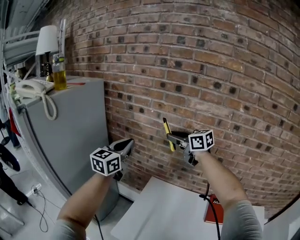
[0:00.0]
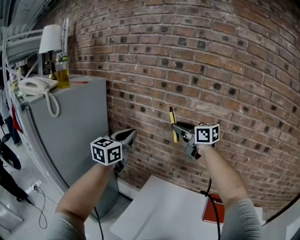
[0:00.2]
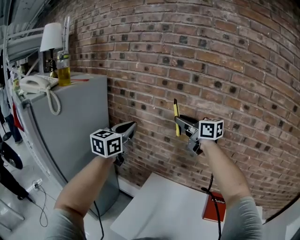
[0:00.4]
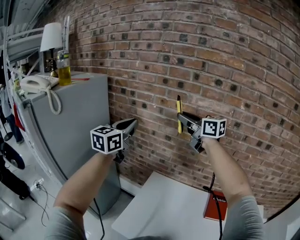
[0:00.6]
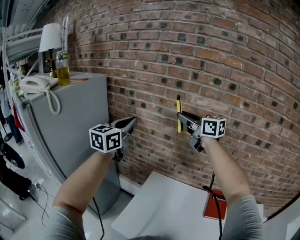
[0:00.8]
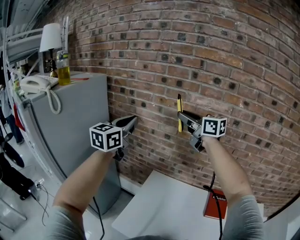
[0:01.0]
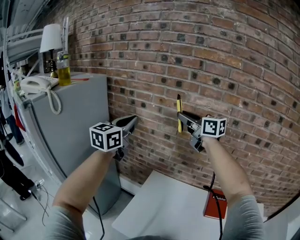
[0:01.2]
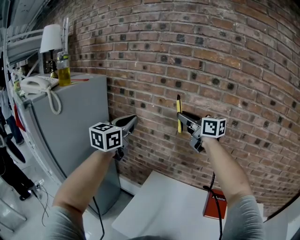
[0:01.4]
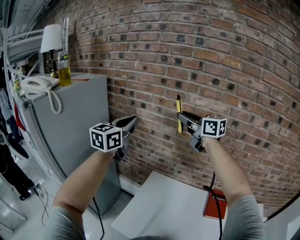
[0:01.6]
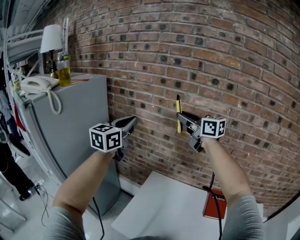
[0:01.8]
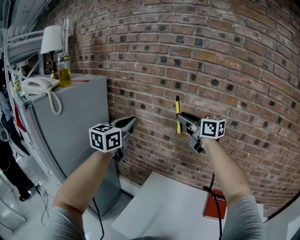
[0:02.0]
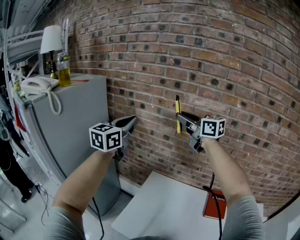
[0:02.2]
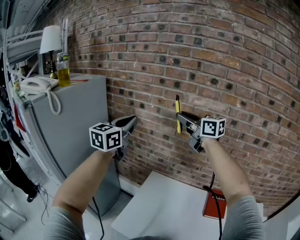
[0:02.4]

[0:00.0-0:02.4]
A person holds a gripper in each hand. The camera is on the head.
0:00.0 to 0:01.2: The grippers both shift upward by approximately 10 cm.
0:01.2 to 0:02.4: The two grippers keep their place.

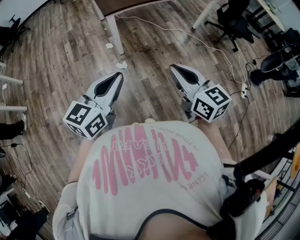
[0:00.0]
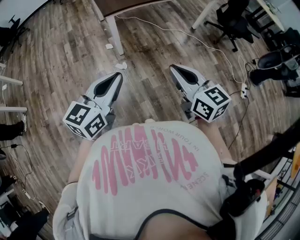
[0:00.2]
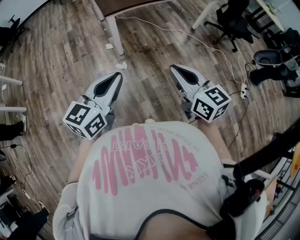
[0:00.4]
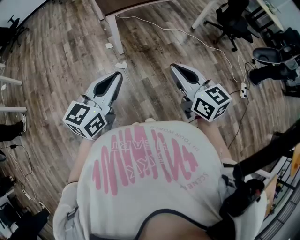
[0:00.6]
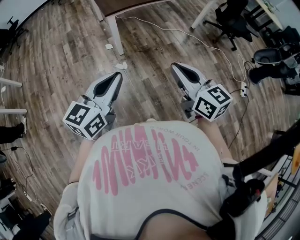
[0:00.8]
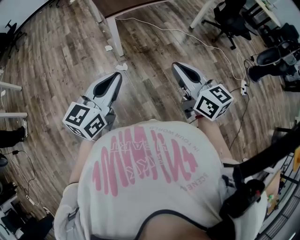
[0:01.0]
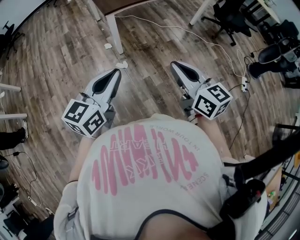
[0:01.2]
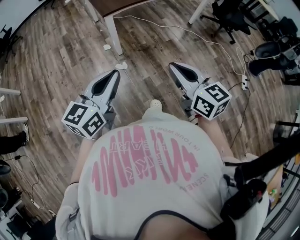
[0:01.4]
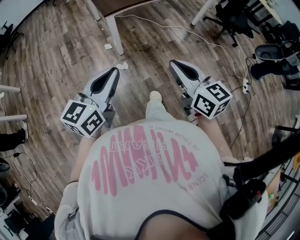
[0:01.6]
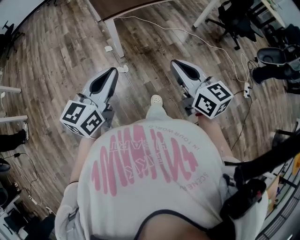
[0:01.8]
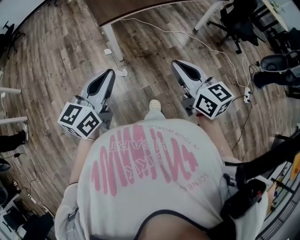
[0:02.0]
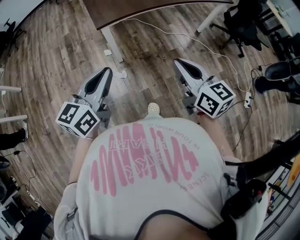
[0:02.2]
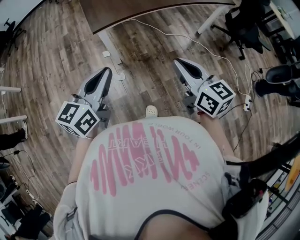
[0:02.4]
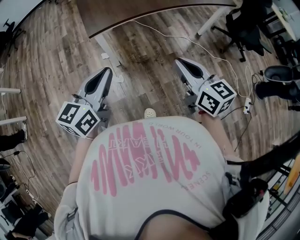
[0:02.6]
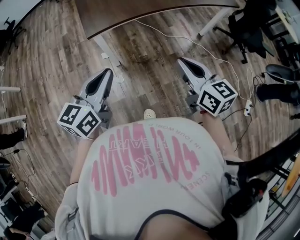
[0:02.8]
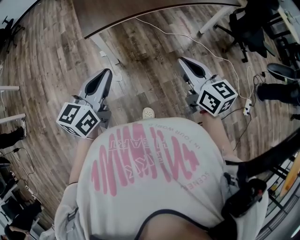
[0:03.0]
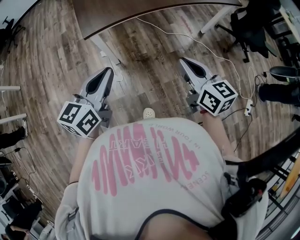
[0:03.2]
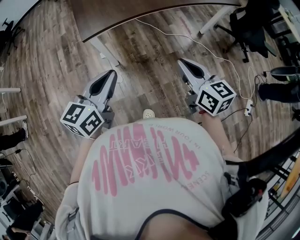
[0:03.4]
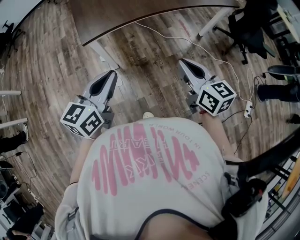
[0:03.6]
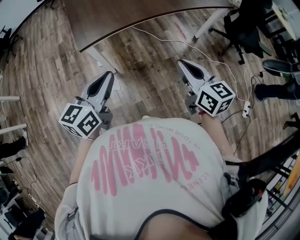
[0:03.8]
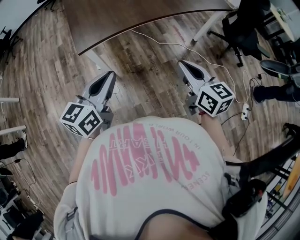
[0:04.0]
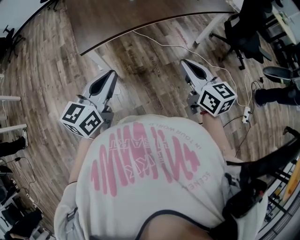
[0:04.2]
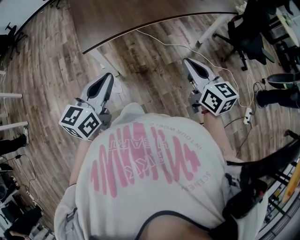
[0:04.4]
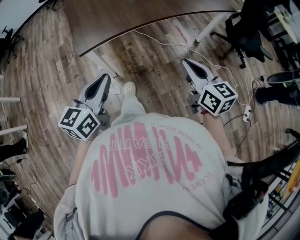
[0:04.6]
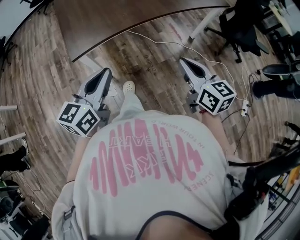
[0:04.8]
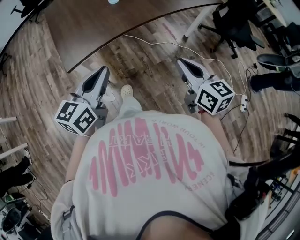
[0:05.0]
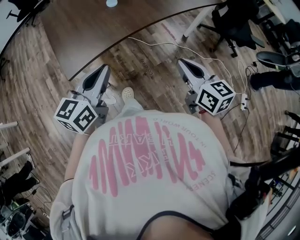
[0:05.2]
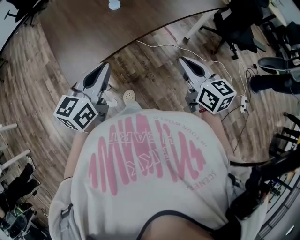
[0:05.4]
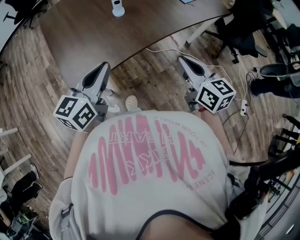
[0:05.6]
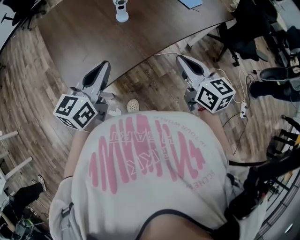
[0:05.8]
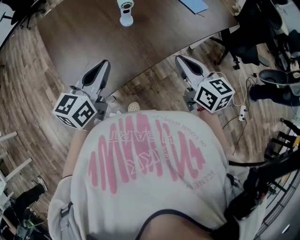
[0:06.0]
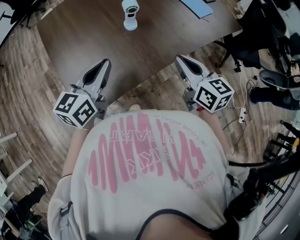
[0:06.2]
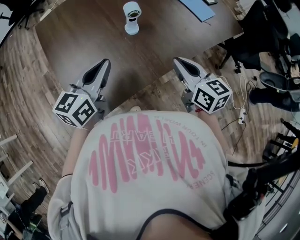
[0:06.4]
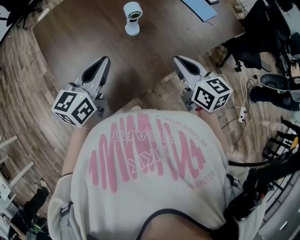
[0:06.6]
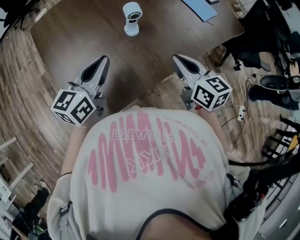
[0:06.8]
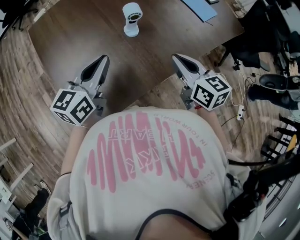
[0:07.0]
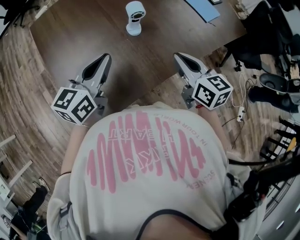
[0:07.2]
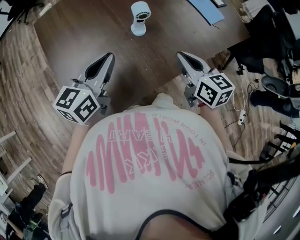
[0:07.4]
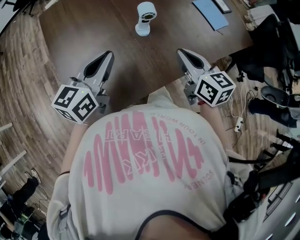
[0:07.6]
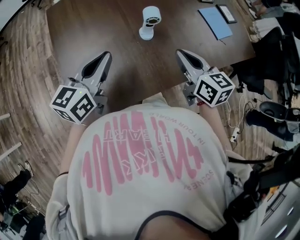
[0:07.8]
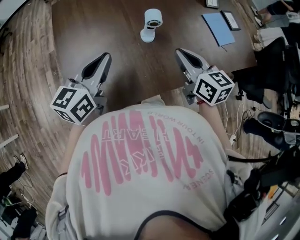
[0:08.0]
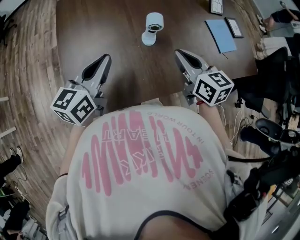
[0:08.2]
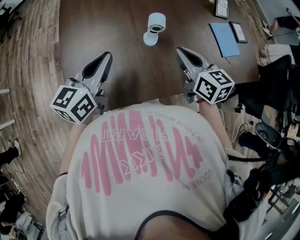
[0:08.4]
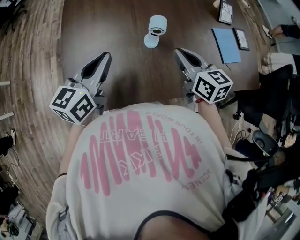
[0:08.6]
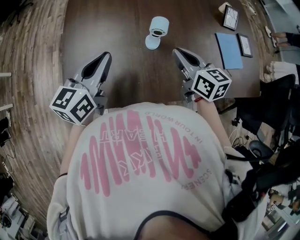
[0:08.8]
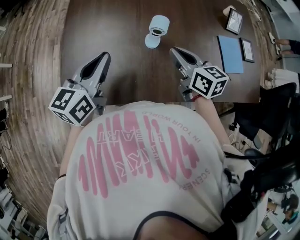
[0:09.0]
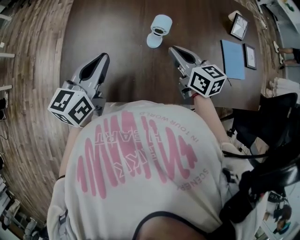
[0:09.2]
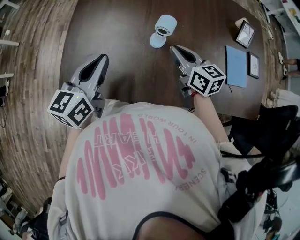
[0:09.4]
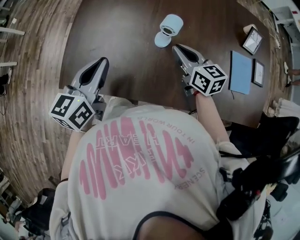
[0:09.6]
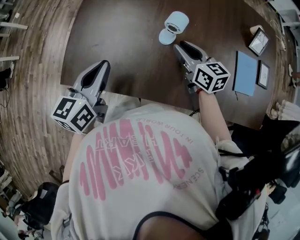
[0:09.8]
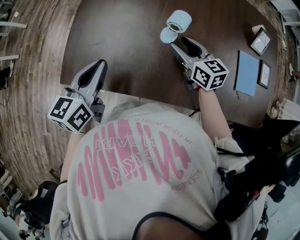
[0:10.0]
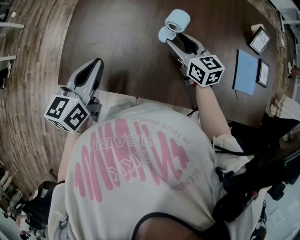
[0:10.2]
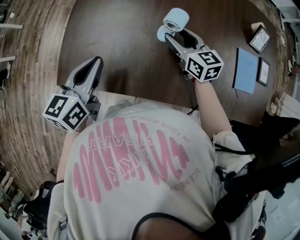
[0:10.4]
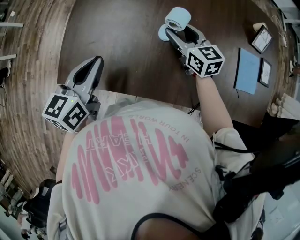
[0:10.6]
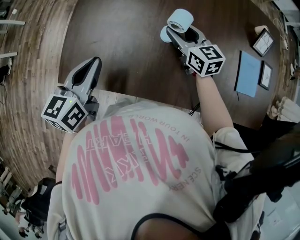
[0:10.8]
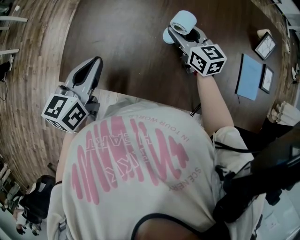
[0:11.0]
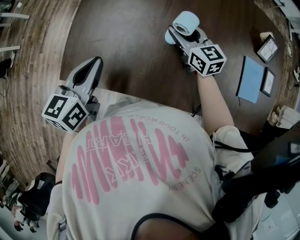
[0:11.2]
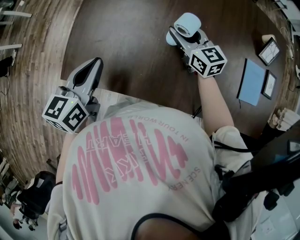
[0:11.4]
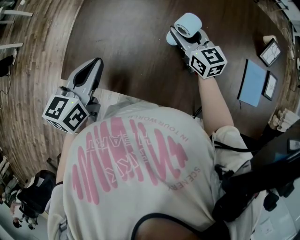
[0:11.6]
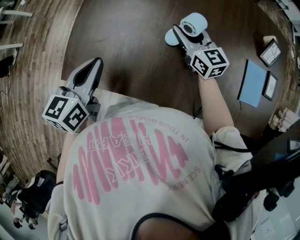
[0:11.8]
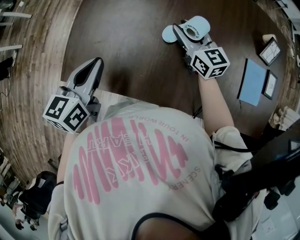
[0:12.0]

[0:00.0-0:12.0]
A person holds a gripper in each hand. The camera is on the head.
0:00.0 to 0:01.6: The right gripper goes approximately 5 cm forward, while the left gripper moves forward and to the left, some 10 cm.
0:01.6 to 0:03.0: The two grippers go some 30 cm forward and to the right.
0:03.0 to 0:04.4: The right gripper moves forward, some 5 cm, while the left gripper moves about 5 cm.
0:04.4 to 0:06.0: The grippers both shift forward by approximately 35 cm.
0:06.0 to 0:07.6: The right gripper heads forward and to the left, covering about 15 cm. Meanwhile the left gripper heads forward, covering approximately 10 cm.
0:07.6 to 0:09.0: The left gripper changes its angle by roughly 30 degrees, while the right gripper ends up some 10 cm from where it was, and turns by some 30 degrees.
0:09.0 to 0:10.4: The right gripper moves forward and downward, some 10 cm, and opens its fingers. The left gripper ends up about 5 cm from where it was.
0:10.4 to 0:12.0: The grippers move only a little.

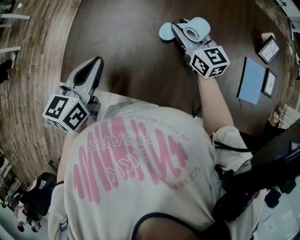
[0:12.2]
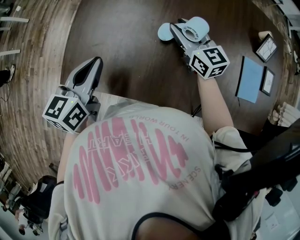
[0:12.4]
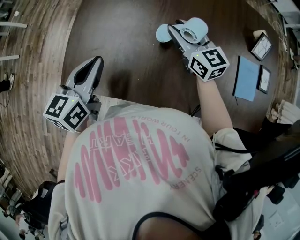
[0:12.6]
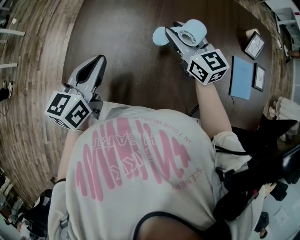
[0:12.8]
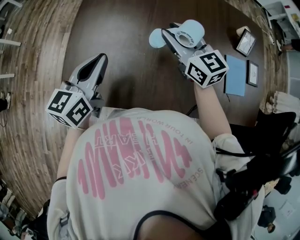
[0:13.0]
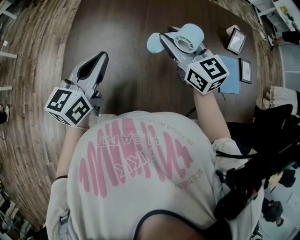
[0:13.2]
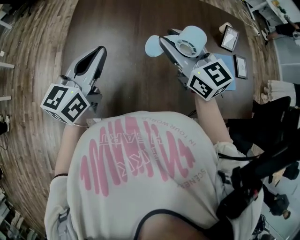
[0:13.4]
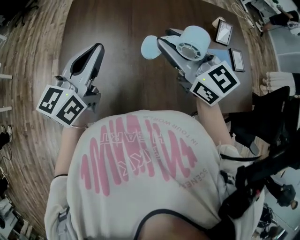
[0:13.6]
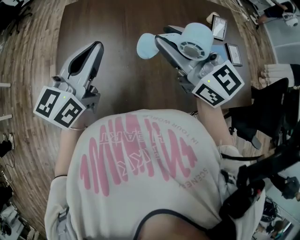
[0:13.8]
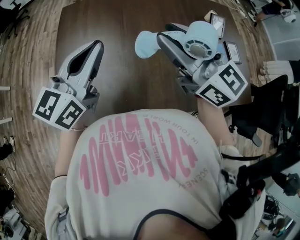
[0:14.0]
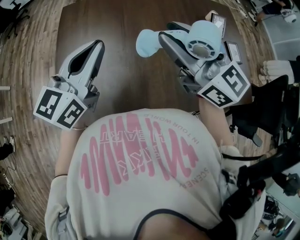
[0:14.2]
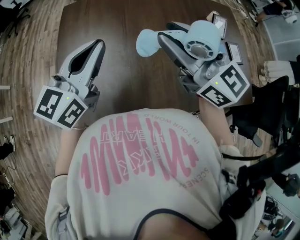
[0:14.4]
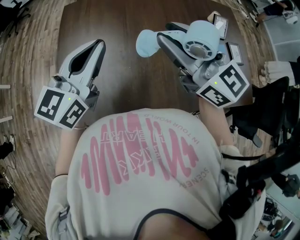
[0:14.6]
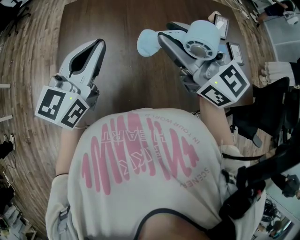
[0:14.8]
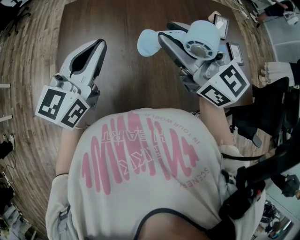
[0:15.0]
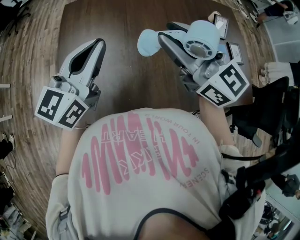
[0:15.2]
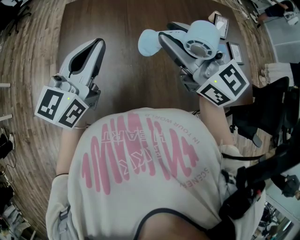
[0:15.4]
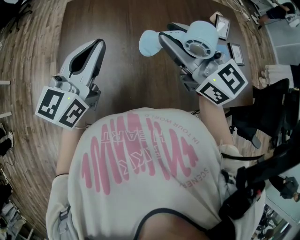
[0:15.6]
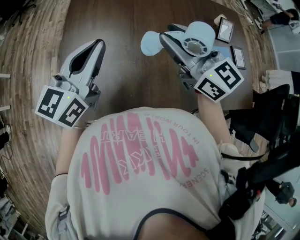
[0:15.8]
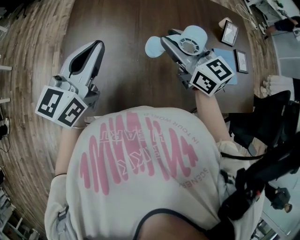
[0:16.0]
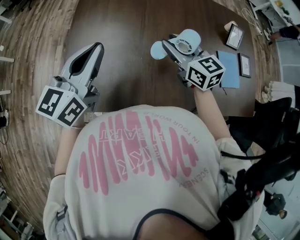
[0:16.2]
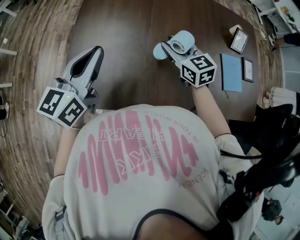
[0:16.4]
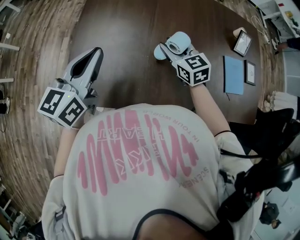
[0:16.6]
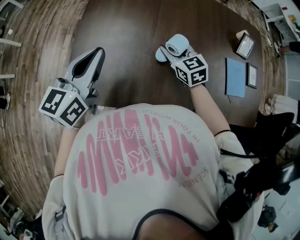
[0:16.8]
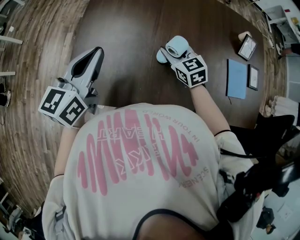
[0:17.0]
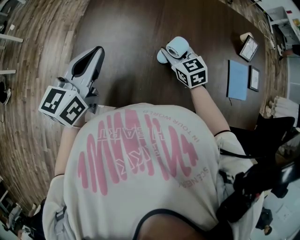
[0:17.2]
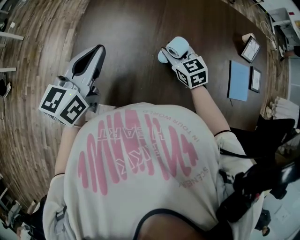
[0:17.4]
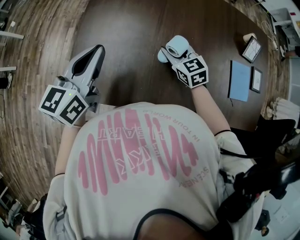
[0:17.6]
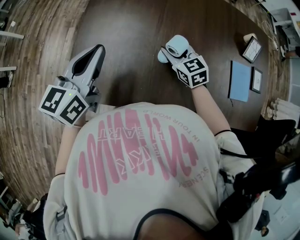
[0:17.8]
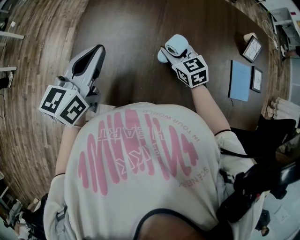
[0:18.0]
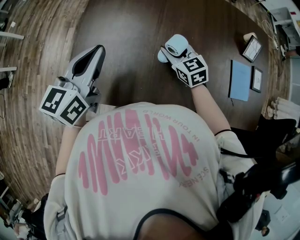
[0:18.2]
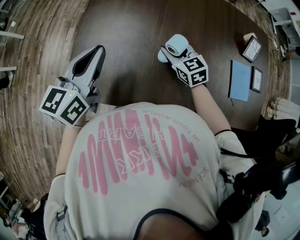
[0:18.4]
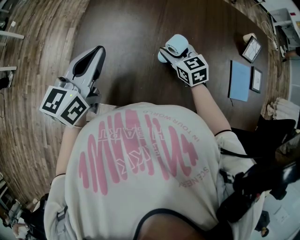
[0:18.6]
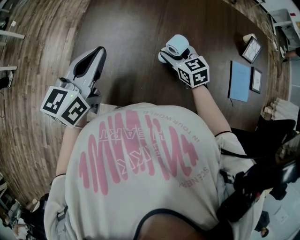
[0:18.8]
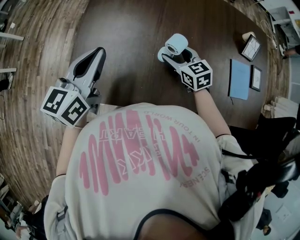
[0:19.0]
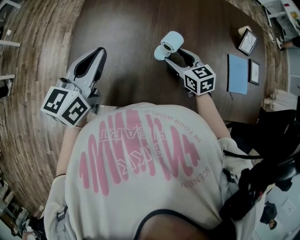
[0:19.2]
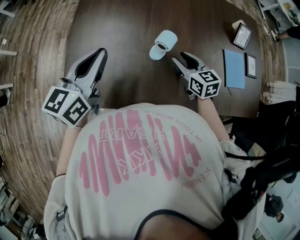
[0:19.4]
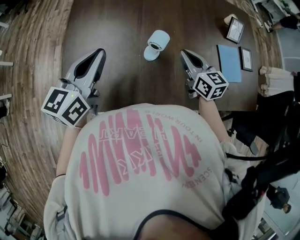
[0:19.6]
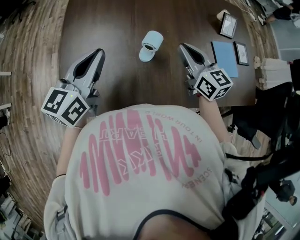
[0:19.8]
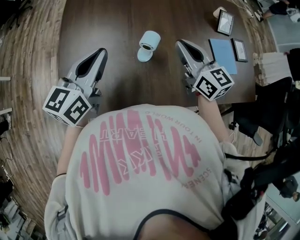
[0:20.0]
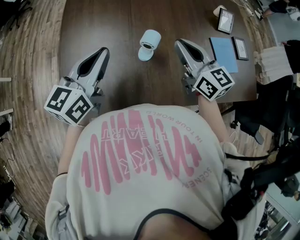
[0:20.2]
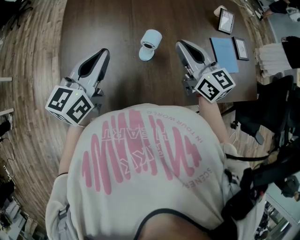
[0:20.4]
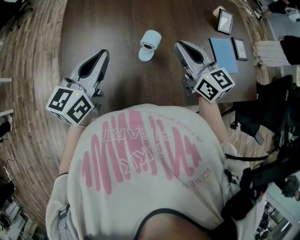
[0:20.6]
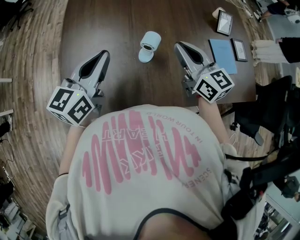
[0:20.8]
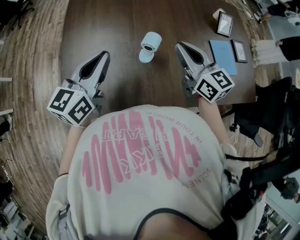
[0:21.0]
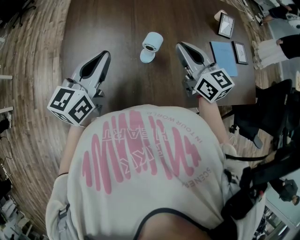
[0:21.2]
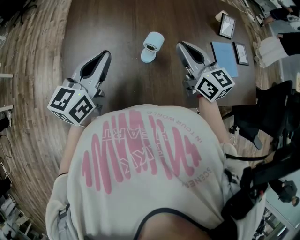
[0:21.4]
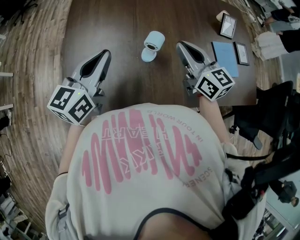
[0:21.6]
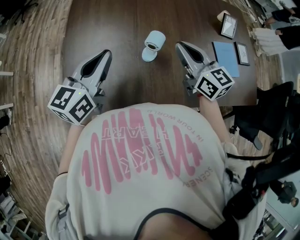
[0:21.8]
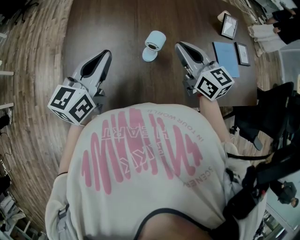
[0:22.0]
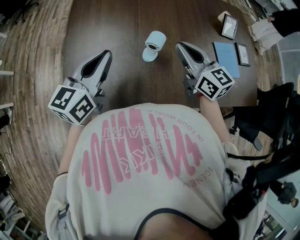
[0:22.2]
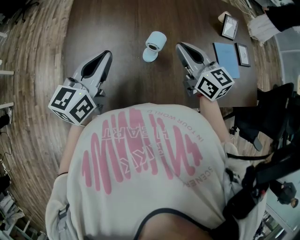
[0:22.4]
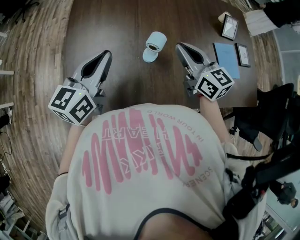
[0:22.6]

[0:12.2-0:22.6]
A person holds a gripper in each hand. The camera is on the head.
0:12.2 to 0:13.6: The right gripper travels upward by approximately 20 cm, while the left gripper is displaced upward, to the right and forward by roughly 15 cm, and turns by roughly 30 degrees.
0:13.6 to 0:15.2: There are only small adjustments of the grippers.
0:15.2 to 0:16.6: The right gripper goes some 20 cm downward, and changes its angle by some 30 degrees; the left gripper travels to the left and downward by about 10 cm.
0:16.6 to 0:18.2: The right gripper travels downward by about 5 cm.
0:18.2 to 0:19.6: The right gripper is displaced to the right, upward and backward by roughly 15 cm, turns by approximately 30 degrees, and closes its fingers.
0:19.6 to 0:21.2: The right gripper travels upward by approximately 10 cm.
0:21.2 to 0:22.6: The grippers make only small movements.
